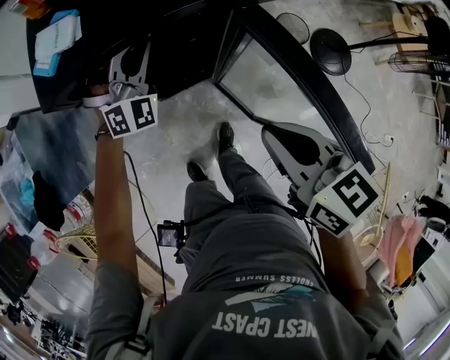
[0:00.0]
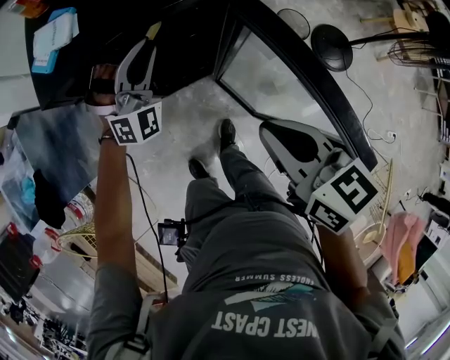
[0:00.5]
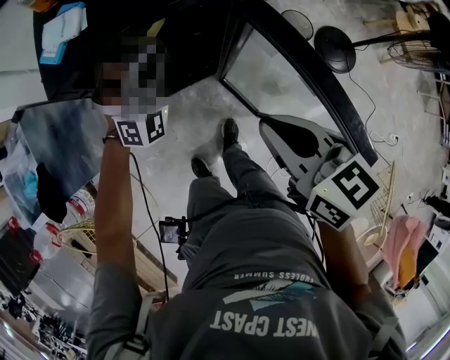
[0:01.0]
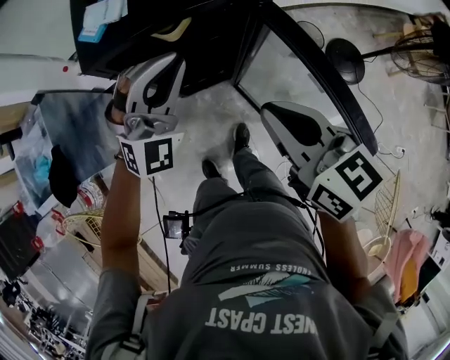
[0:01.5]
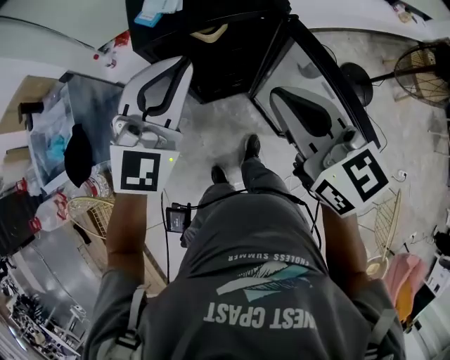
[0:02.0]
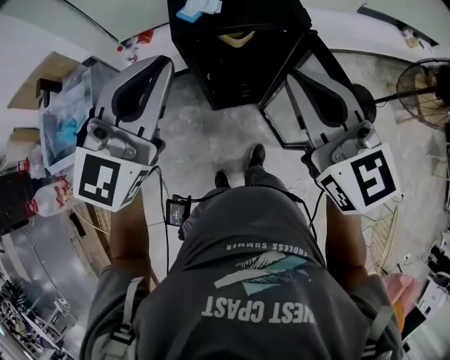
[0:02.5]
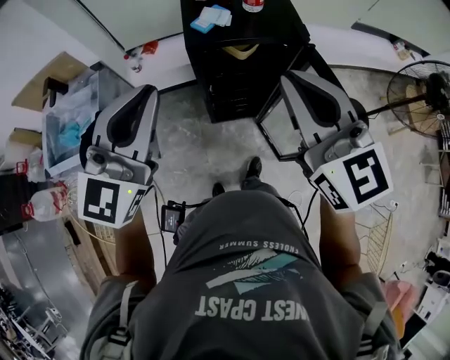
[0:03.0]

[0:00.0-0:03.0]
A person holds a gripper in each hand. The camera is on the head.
0:00.0 to 0:01.5: The right gripper heads upward, covering some 5 cm. The left gripper goes about 15 cm backward and upward.
0:01.5 to 0:03.0: The left gripper heads to the left, upward and backward, covering roughly 30 cm, and twists some 40 degrees counterclockwise, seen from behind; the right gripper moves upward and to the left, approximately 25 cm, and swivels about 40 degrees.

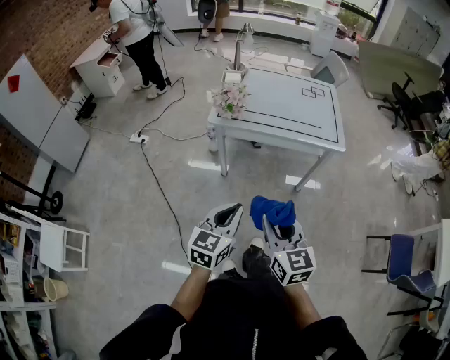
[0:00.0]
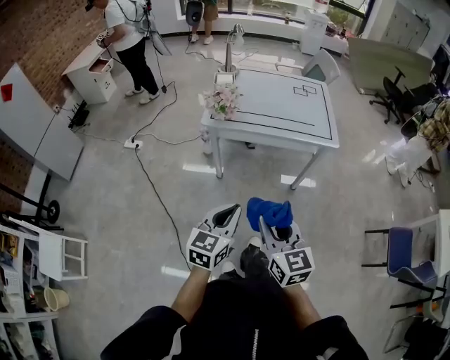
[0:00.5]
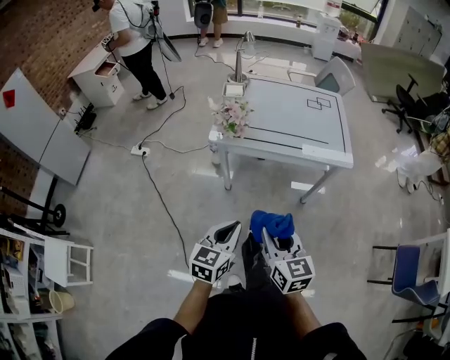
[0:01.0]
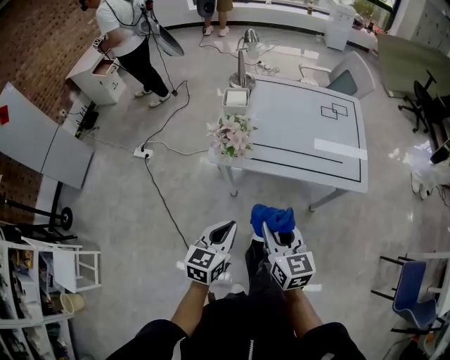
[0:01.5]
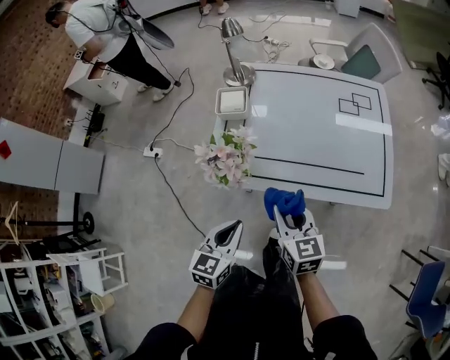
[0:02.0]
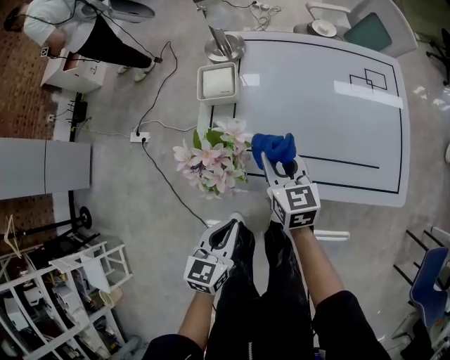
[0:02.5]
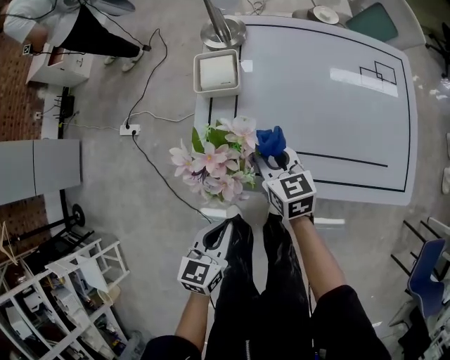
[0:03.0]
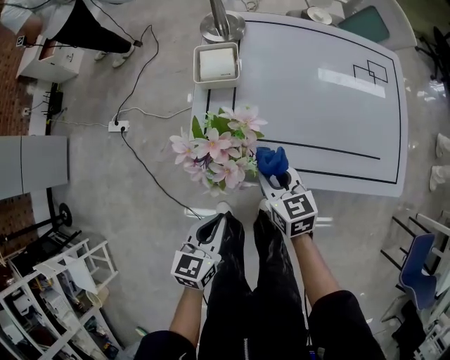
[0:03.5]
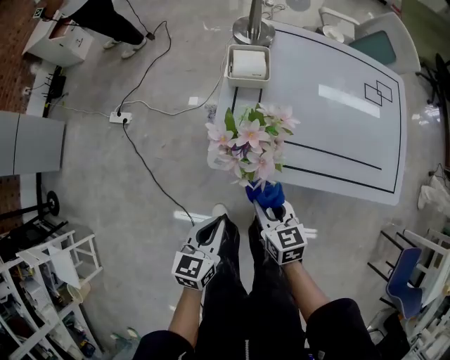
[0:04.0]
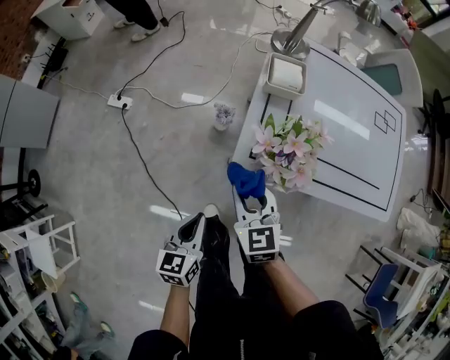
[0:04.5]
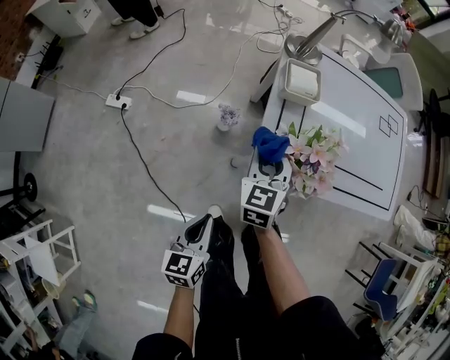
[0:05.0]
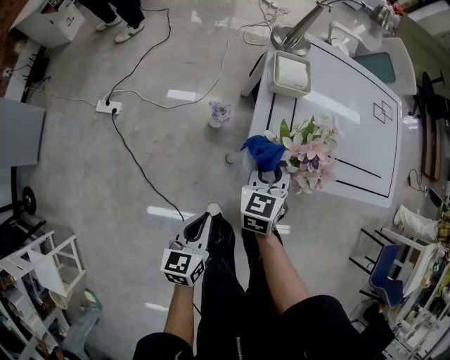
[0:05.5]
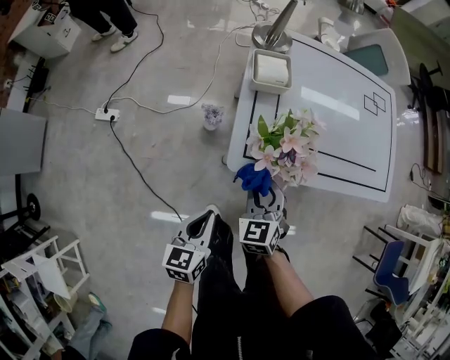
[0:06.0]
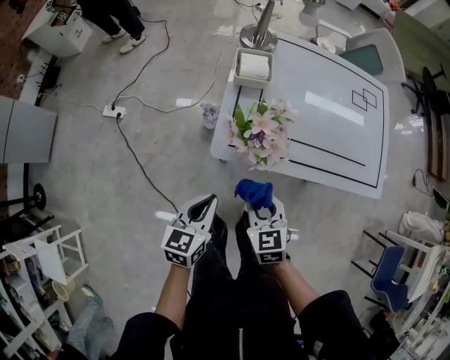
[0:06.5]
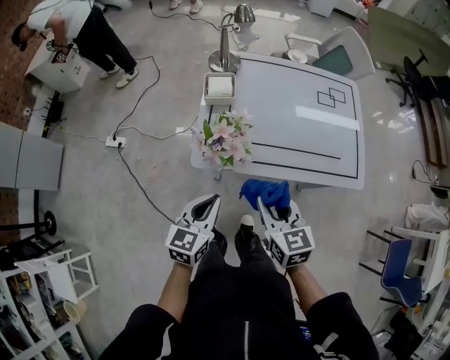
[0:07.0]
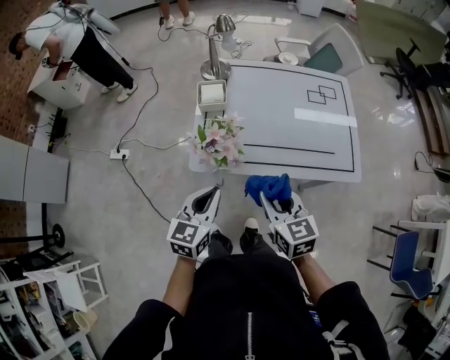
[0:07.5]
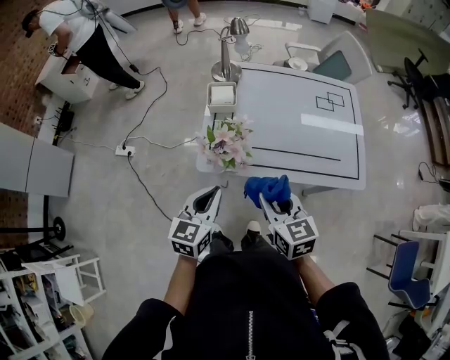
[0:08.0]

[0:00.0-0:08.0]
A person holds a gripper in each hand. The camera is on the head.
0:00.0 to 0:02.0: Both grippers move forward, some 40 cm.
0:02.0 to 0:04.0: The left gripper shifts some 15 cm to the left and downward, while the right gripper moves downward and to the left, about 20 cm, and travels forward and back again, approximately 20 cm each way.
0:04.0 to 0:06.0: Both grippers travel together to the left, about 10 cm. The right gripper rotates some 40 degrees.
0:06.0 to 0:08.0: The left gripper shifts some 25 cm upward and to the right; the right gripper shifts about 25 cm upward, to the right and backward, and rotates approximately 40 degrees.

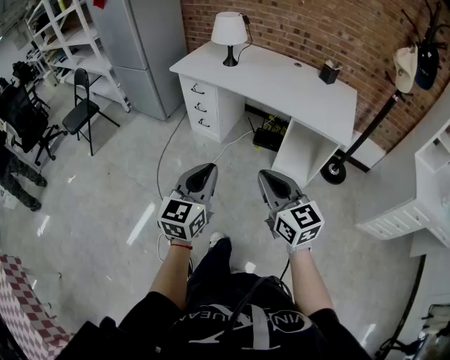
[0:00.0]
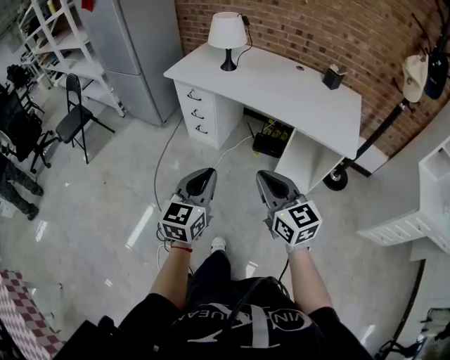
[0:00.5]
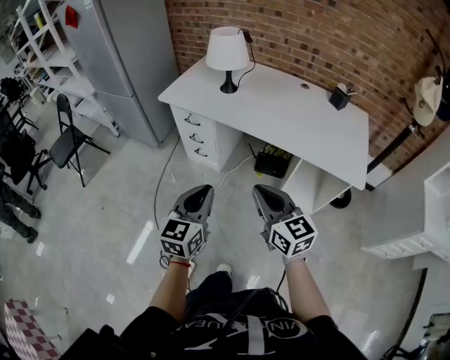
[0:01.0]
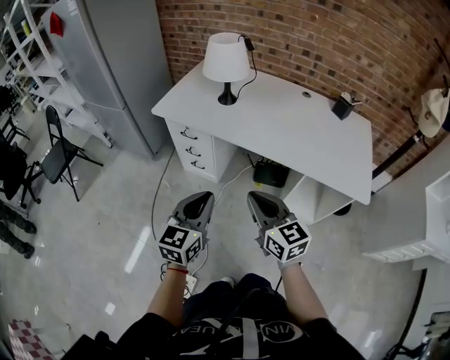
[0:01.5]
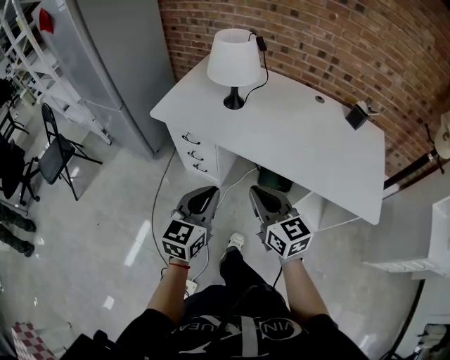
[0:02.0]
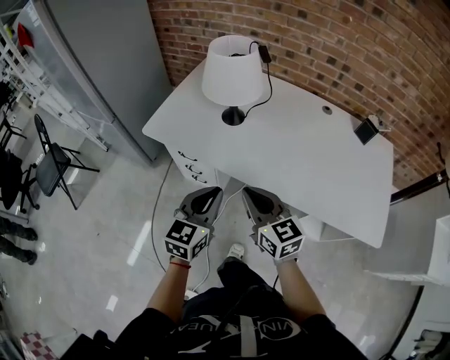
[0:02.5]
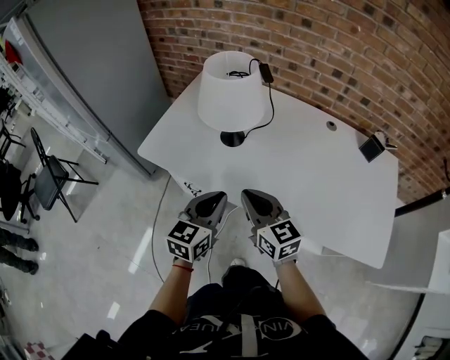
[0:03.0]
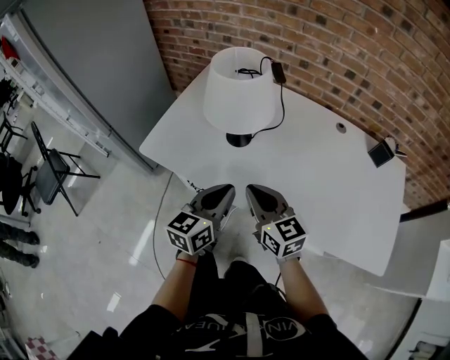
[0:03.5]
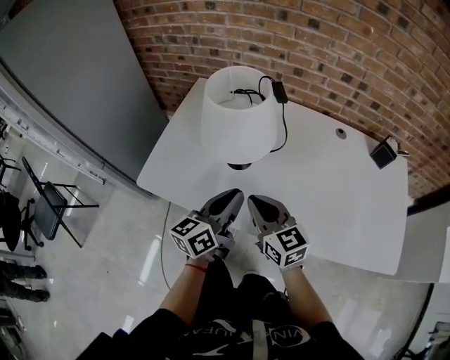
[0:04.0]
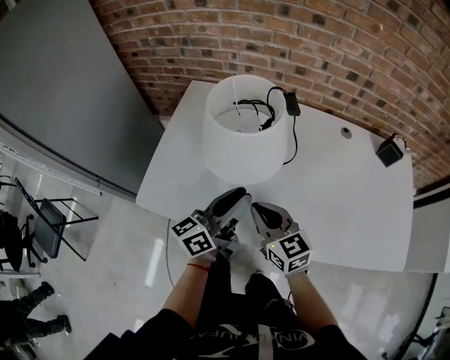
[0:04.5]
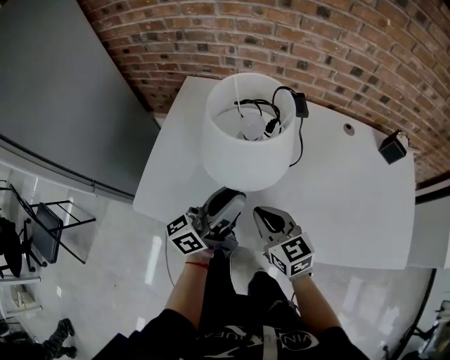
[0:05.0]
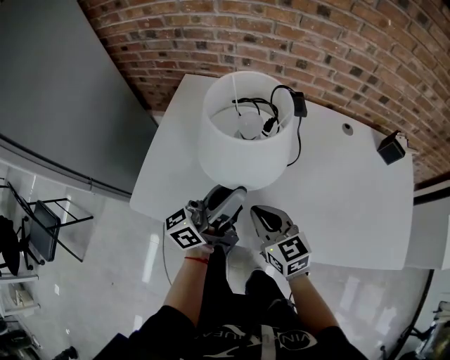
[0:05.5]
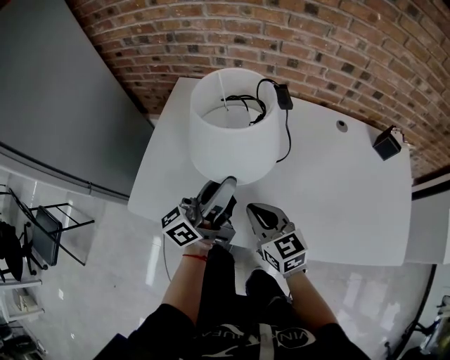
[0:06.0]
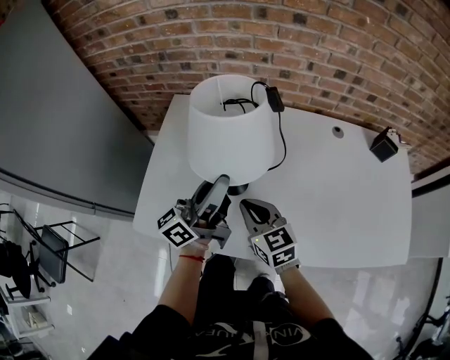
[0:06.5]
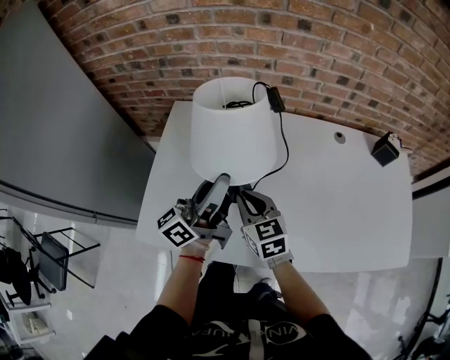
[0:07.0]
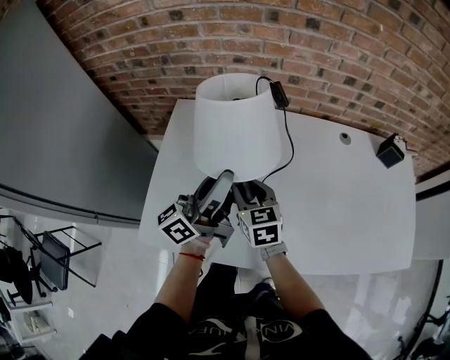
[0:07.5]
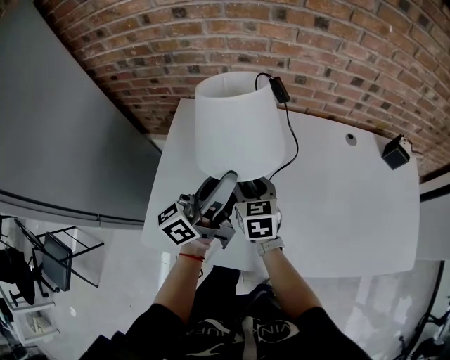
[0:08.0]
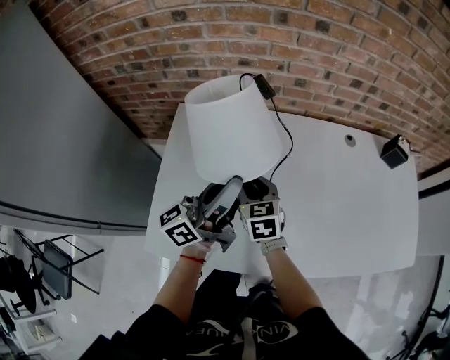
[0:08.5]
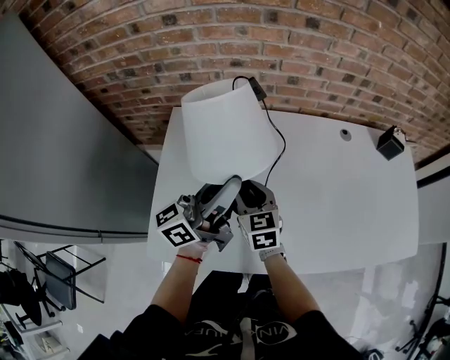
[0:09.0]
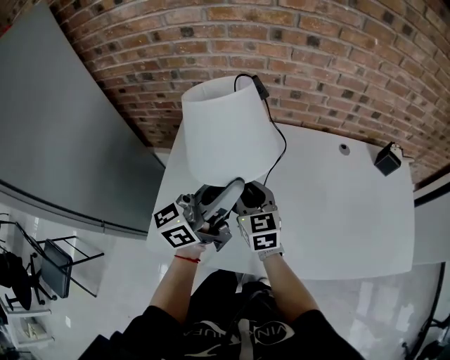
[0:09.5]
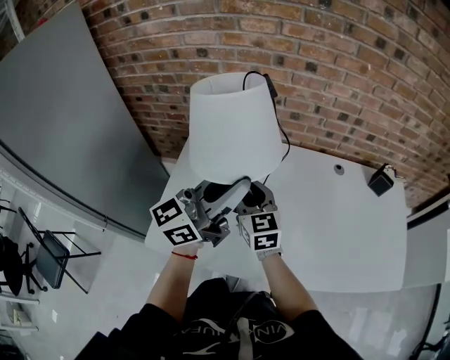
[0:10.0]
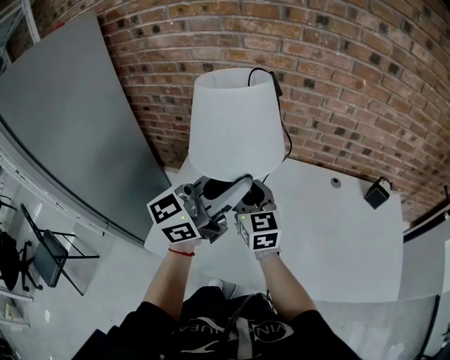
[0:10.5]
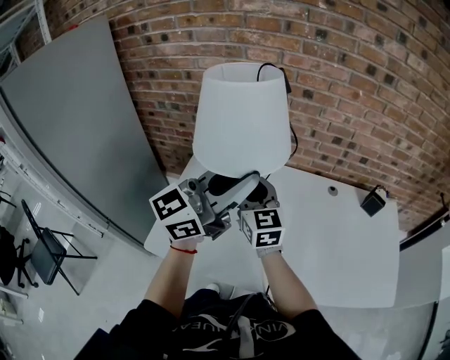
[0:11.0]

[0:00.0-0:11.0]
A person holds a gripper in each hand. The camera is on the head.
0:00.0 to 0:02.0: The two grippers travel together, forward, roughly 40 cm.
0:02.0 to 0:03.5: The grippers both shift forward by roughly 25 cm.
0:03.5 to 0:05.5: The left gripper moves forward, some 15 cm, tilts its fingers some 40 degrees upward, and opens its fingers. Meanwhile the right gripper goes approximately 15 cm forward, downward and to the left.
0:05.5 to 0:07.5: Both grippers move forward, roughly 10 cm. The right gripper opens its fingers.
0:07.5 to 0:09.0: The grippers make only small movements.
0:09.0 to 0:11.0: The left gripper moves upward and to the right, about 20 cm, and changes its angle by about 40 degrees. Meanwhile the right gripper travels upward by approximately 20 cm, and rotates approximately 30 degrees.

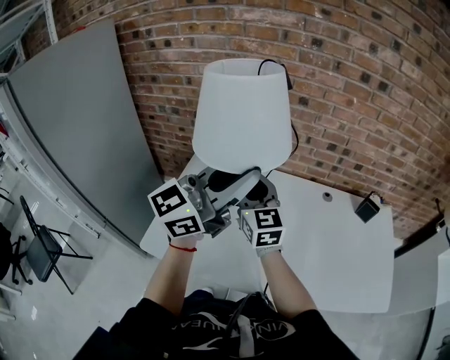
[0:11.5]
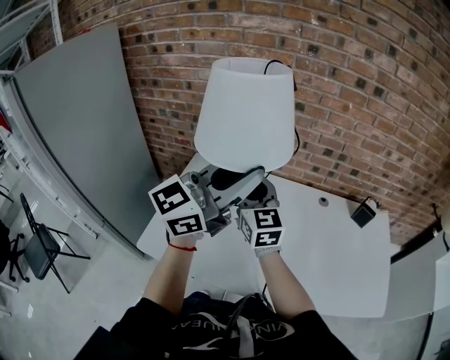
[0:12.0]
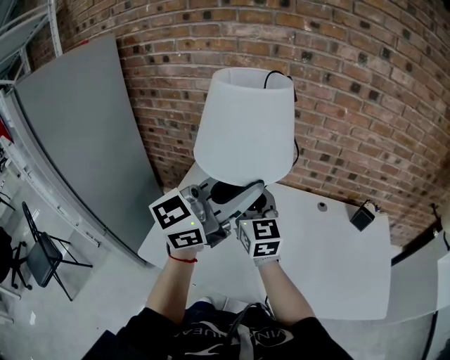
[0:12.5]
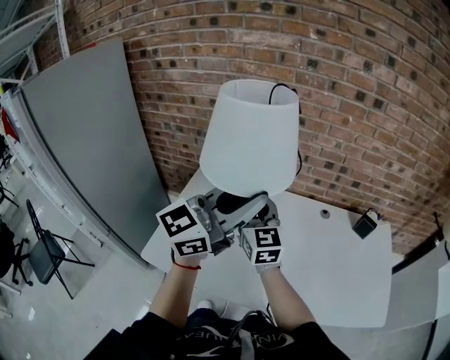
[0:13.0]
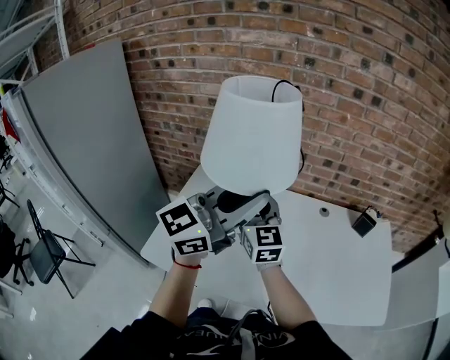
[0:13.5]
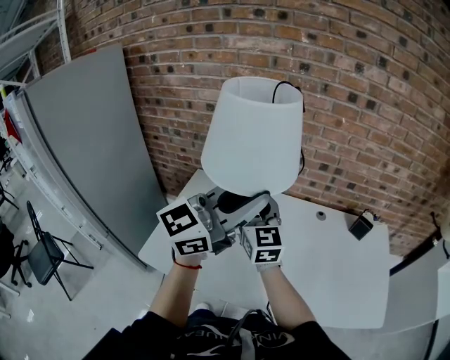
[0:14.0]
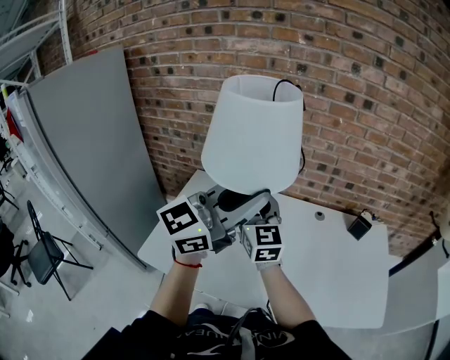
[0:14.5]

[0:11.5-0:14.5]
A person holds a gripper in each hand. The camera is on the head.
0:11.5 to 0:13.0: The grippers stay close to where they were, moving slightly.
0:13.0 to 0:14.5: The grippers stay close to where they were, moving slightly.

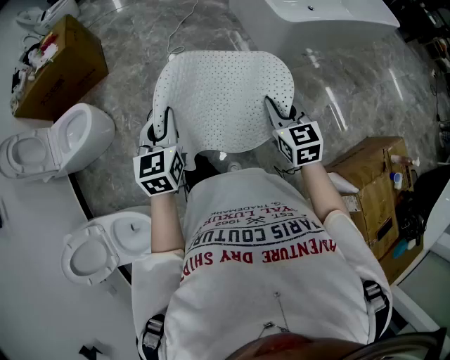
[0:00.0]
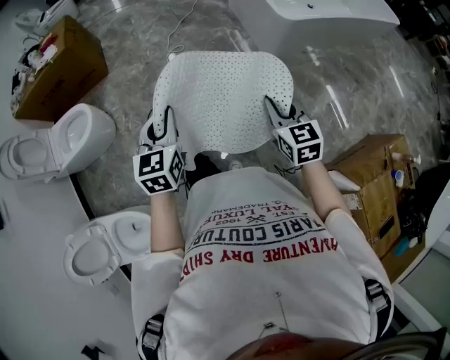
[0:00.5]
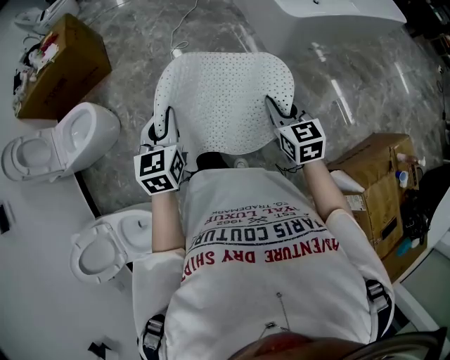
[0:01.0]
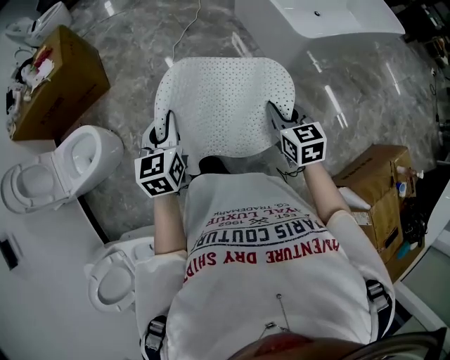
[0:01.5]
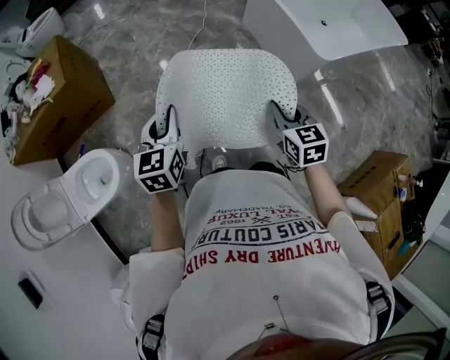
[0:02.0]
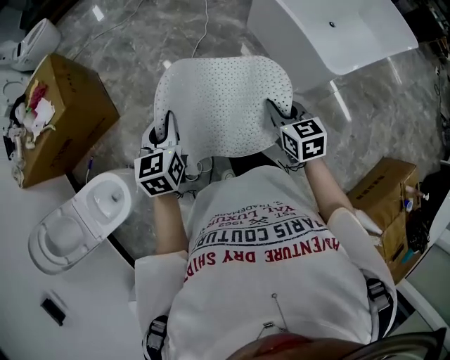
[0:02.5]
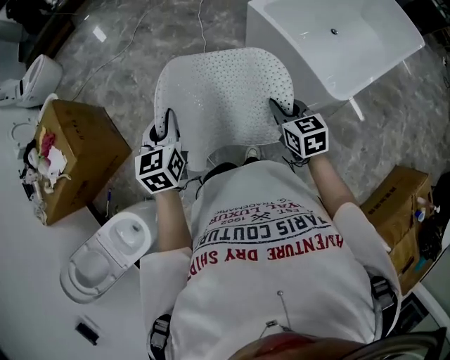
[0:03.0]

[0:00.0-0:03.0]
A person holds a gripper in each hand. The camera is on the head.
0:00.0 to 0:01.5: The two grippers go some 20 cm forward and to the left.
0:01.5 to 0:03.0: Both grippers are carried forward, some 50 cm.
